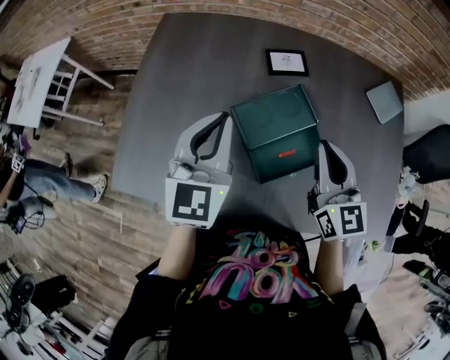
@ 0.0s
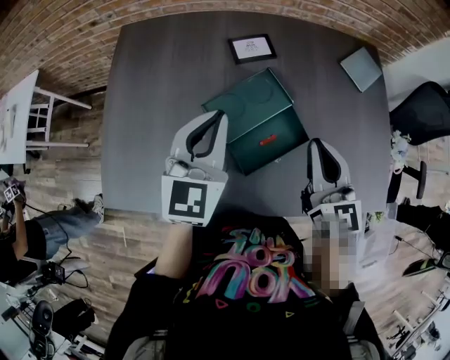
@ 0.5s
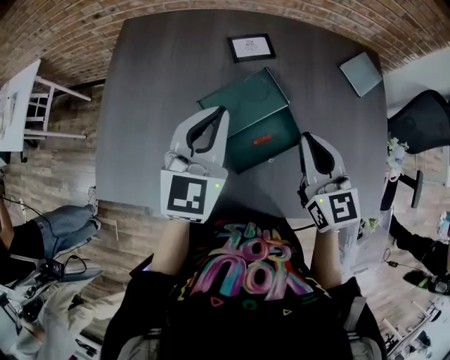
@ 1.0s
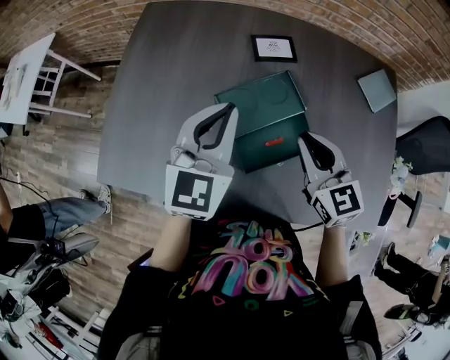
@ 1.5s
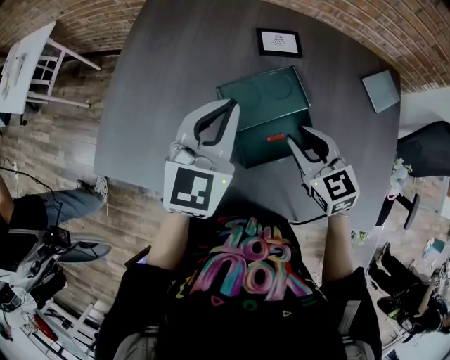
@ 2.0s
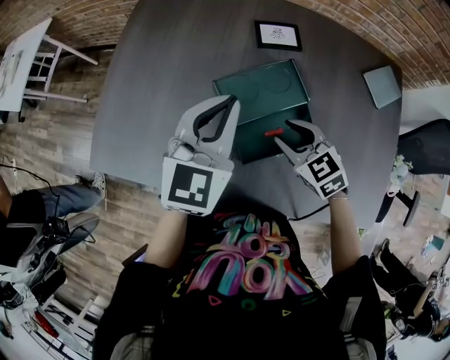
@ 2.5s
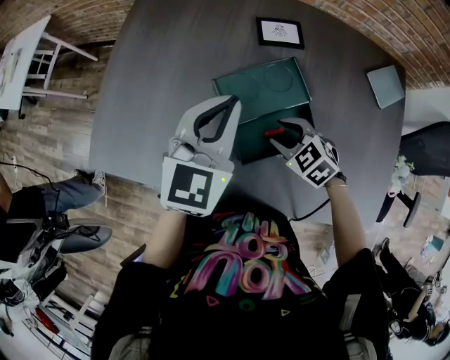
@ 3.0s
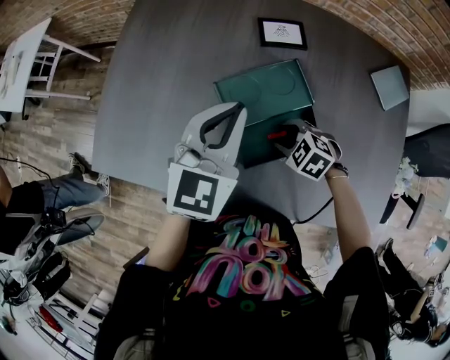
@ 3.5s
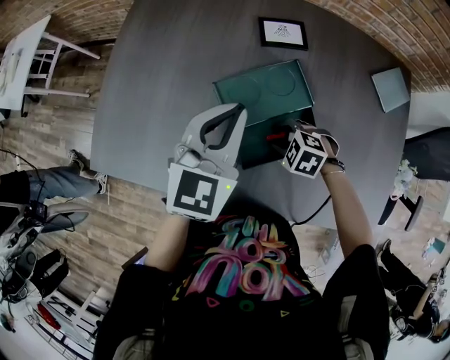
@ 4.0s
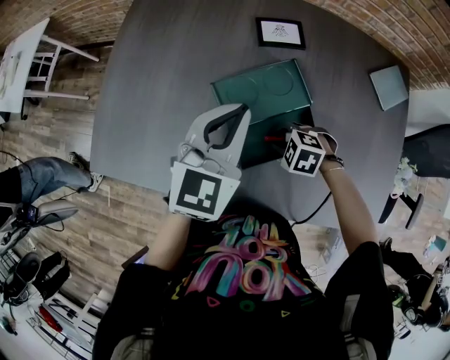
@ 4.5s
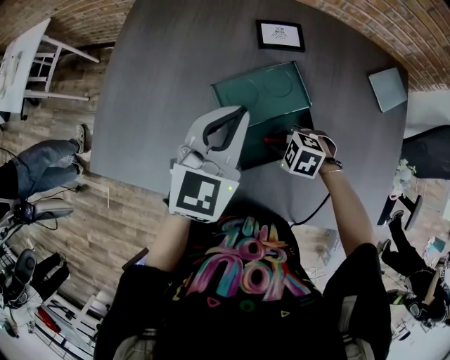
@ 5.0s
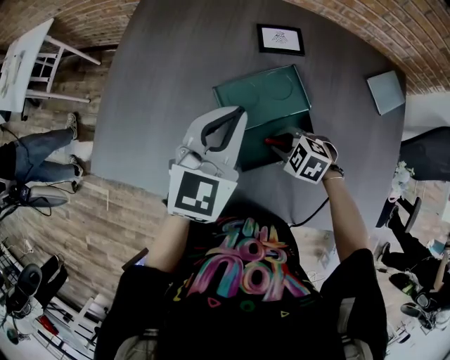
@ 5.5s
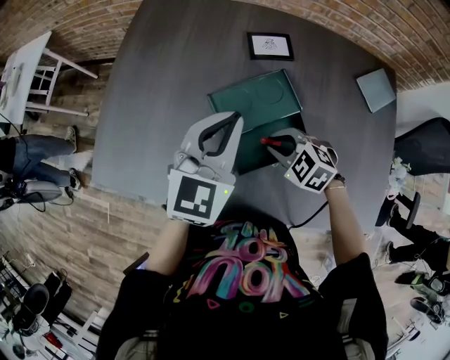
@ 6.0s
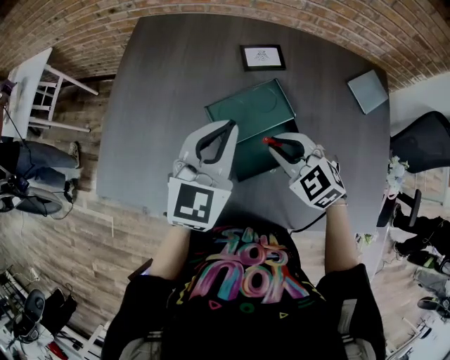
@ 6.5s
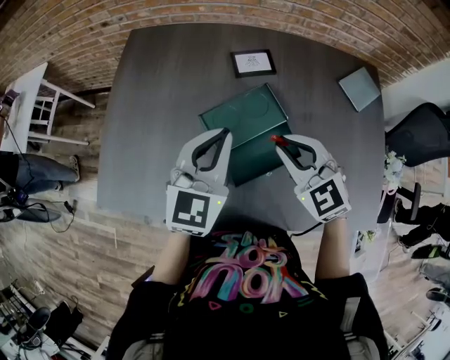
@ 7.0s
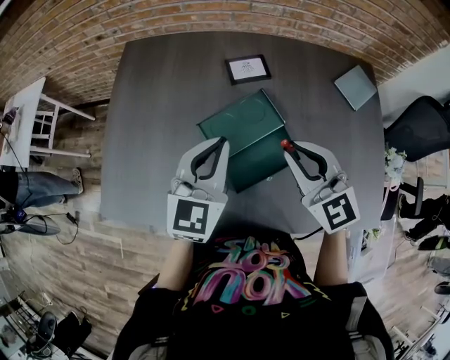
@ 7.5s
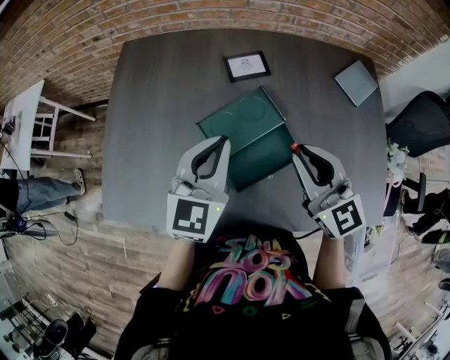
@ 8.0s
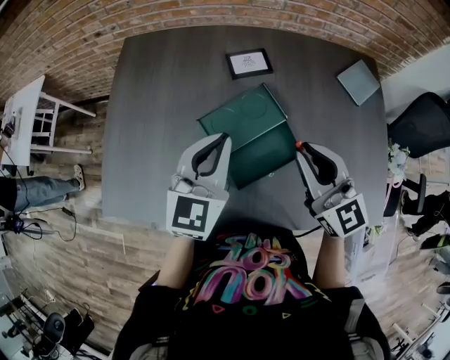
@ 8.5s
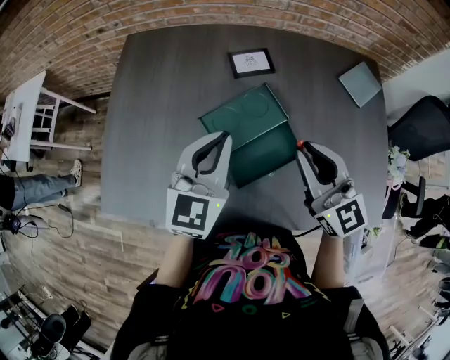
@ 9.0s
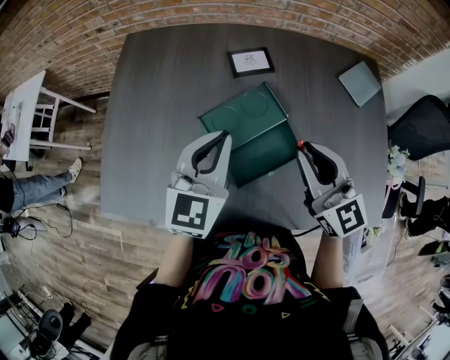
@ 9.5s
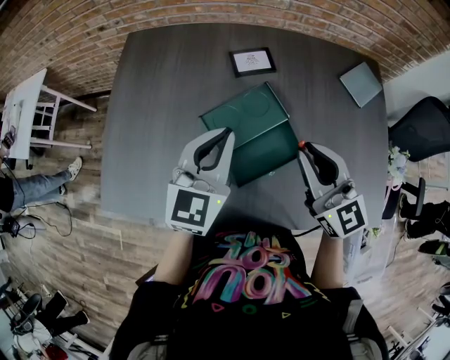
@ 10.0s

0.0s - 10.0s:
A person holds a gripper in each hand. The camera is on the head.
0.0s - 2.0s: The right gripper heads downward, covering roughly 10 cm, rotates some 30 degrees, and opens. Meanwhile the left gripper travels to the right by approximately 5 cm.
2.0s - 4.0s: The right gripper shifts about 15 cm downward, and tilts its fingers some 40 degrees downward.
4.0s - 6.0s: The right gripper shifts some 10 cm upward, and closes.
6.0s - 8.0s: The right gripper goes roughly 20 cm upward, and tilts its fingers some 50 degrees upward.
8.0s - 10.0s: Both grippers stay about where they are.

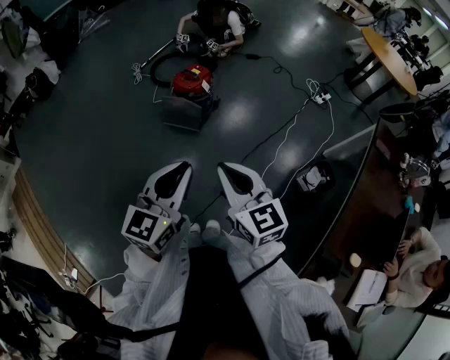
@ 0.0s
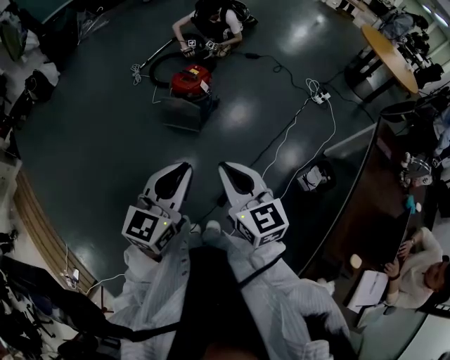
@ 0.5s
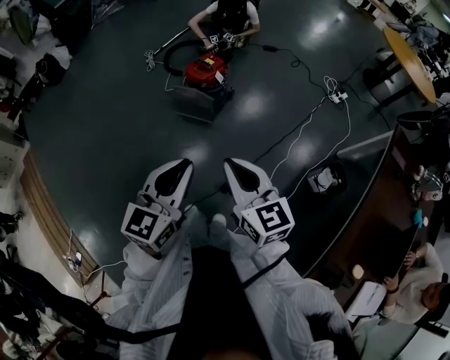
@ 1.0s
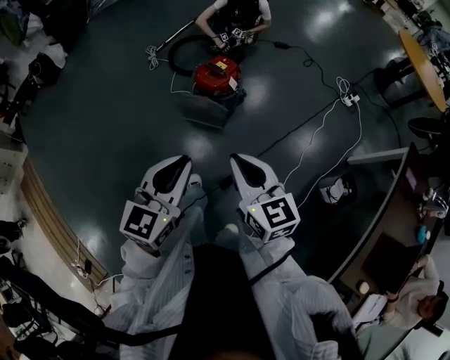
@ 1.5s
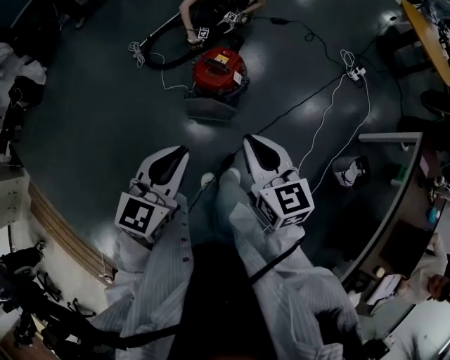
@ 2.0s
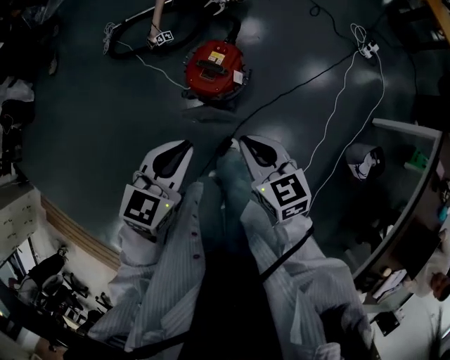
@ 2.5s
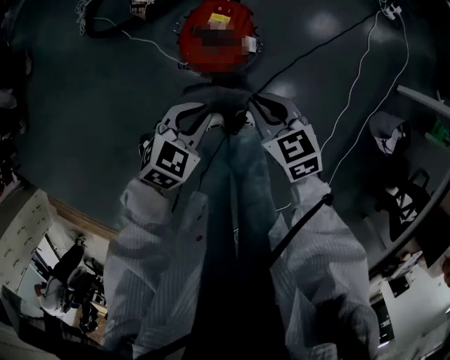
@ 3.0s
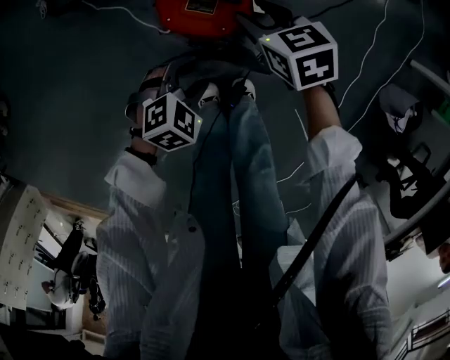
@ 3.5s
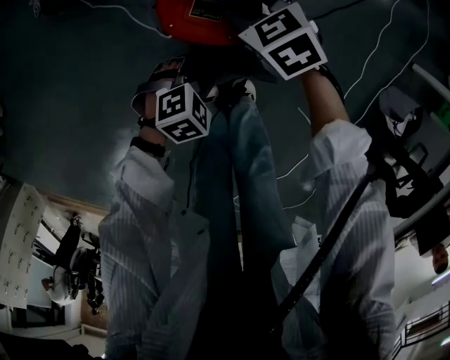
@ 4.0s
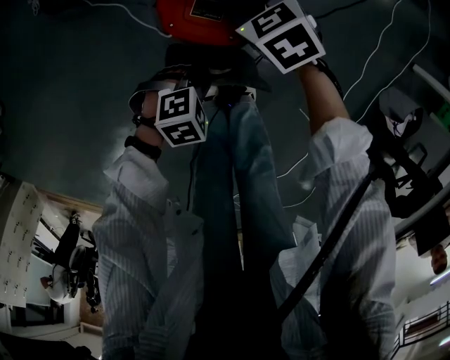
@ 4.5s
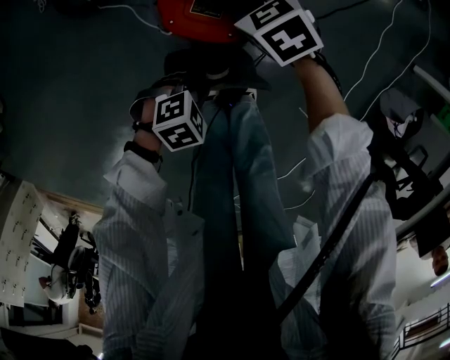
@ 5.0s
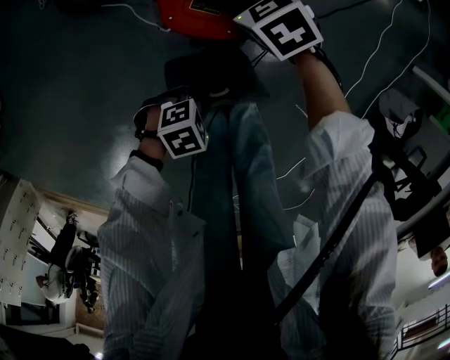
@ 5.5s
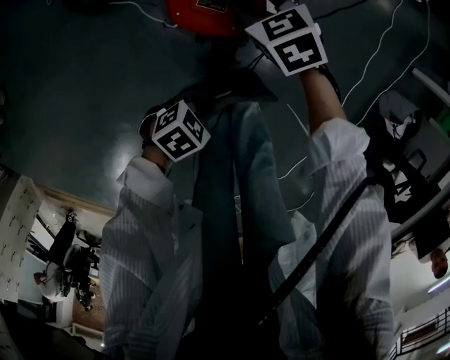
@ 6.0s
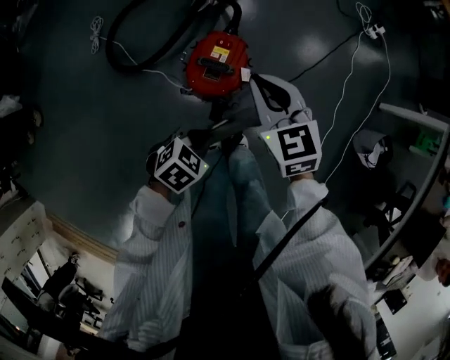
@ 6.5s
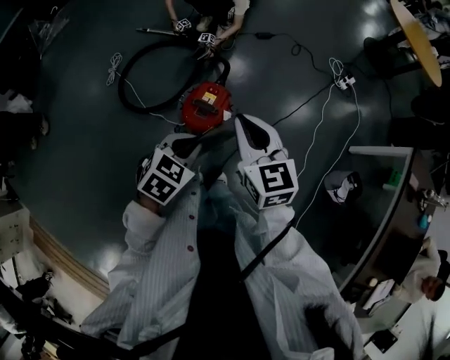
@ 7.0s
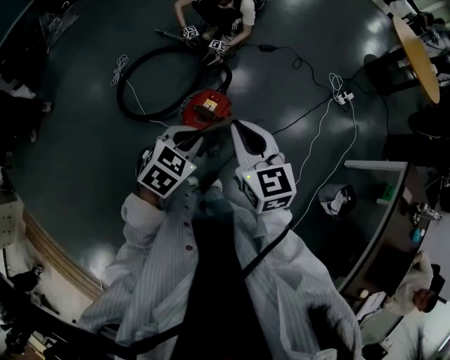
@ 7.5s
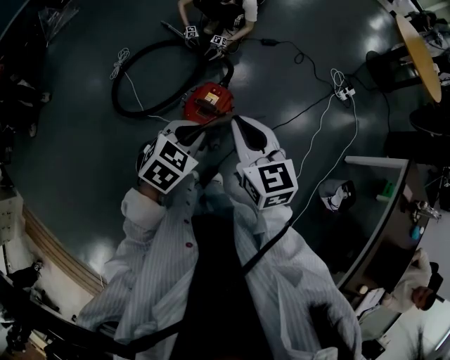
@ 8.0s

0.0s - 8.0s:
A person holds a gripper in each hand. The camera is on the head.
0.0s - 2.0s: The right gripper heads forward, covering some 35 cm. The left gripper heads forward and to the left, covering roughly 40 cm.
2.0s - 4.0s: The two grippers go about 60 cm downward. The left gripper points its fingers roughly 40 degrees further downward, and opens up, while the right gripper tilts its fingers about 30 degrees downward, and opens its fingers.
4.0s - 6.0s: The left gripper moves roughly 10 cm, swivels roughly 20 degrees, and closes up.
6.0s - 8.0s: The grippers both shift upward by approximately 50 cm. The right gripper points its fingers some 30 degrees further upward, and closes. Meanwhile the left gripper turns by some 40 degrees.

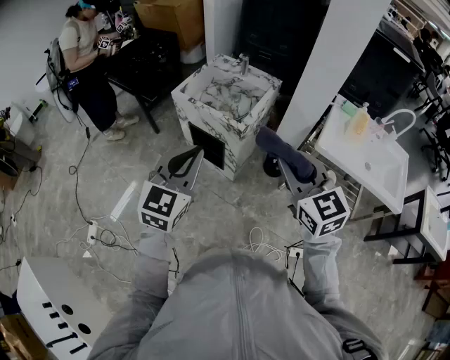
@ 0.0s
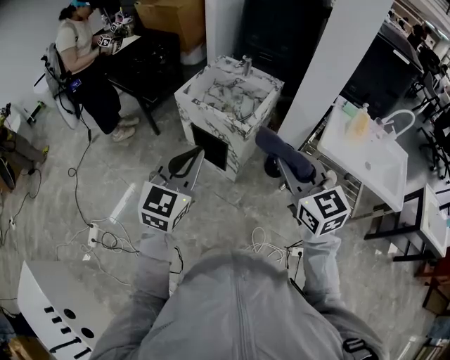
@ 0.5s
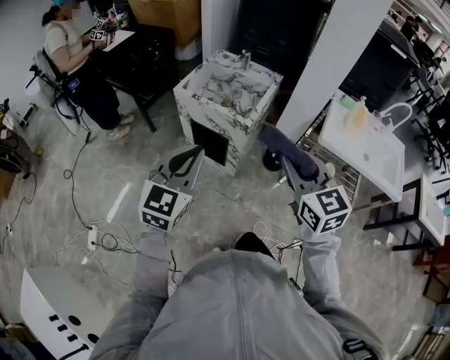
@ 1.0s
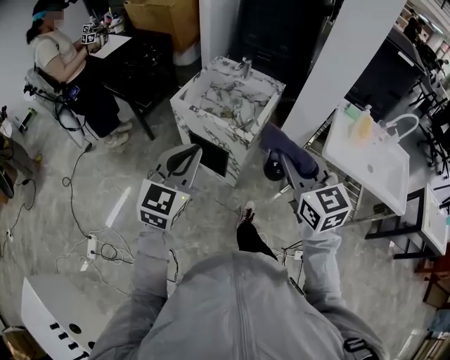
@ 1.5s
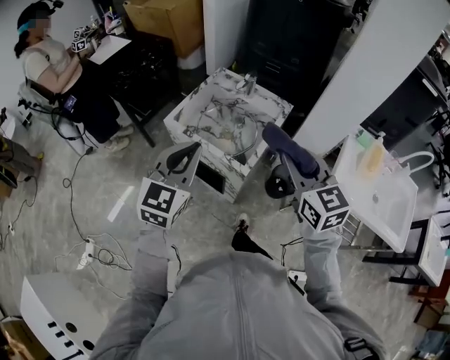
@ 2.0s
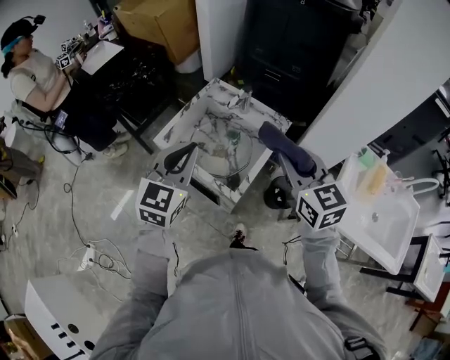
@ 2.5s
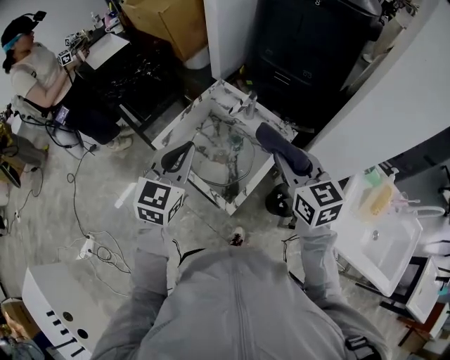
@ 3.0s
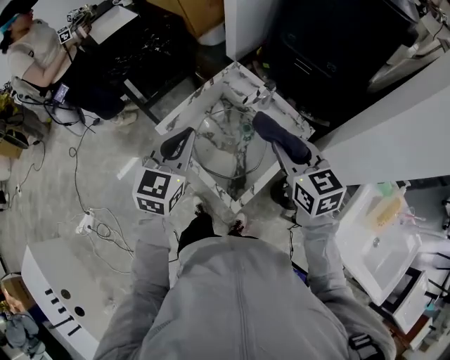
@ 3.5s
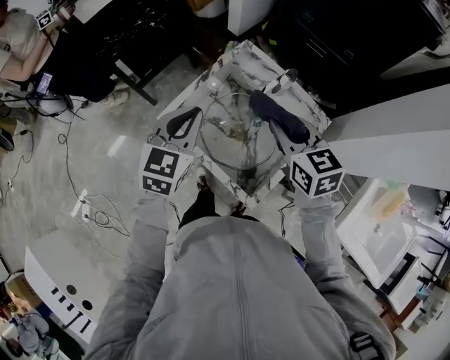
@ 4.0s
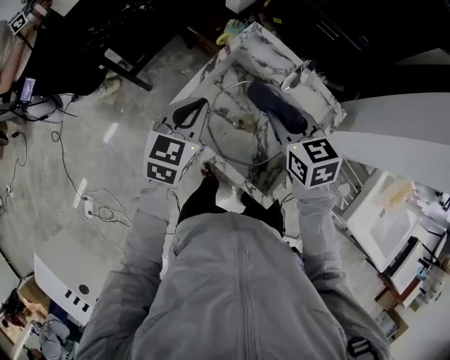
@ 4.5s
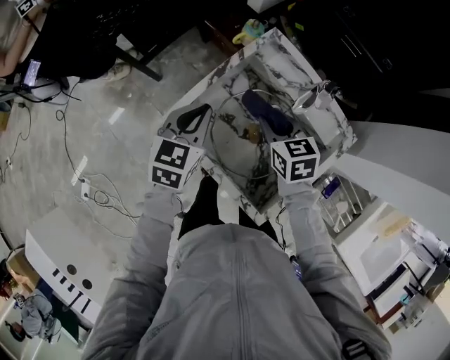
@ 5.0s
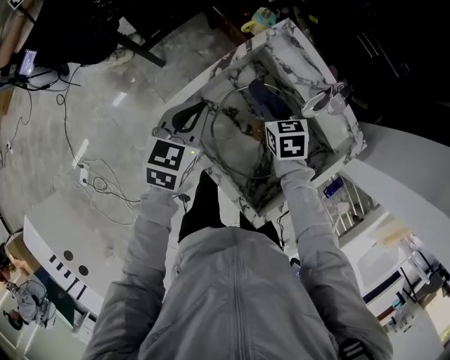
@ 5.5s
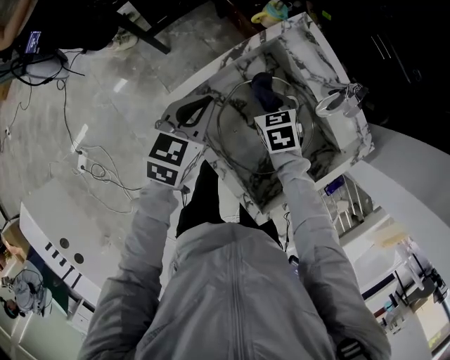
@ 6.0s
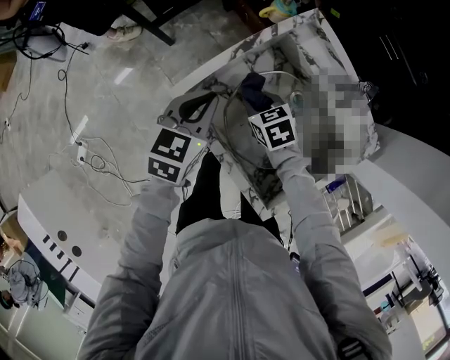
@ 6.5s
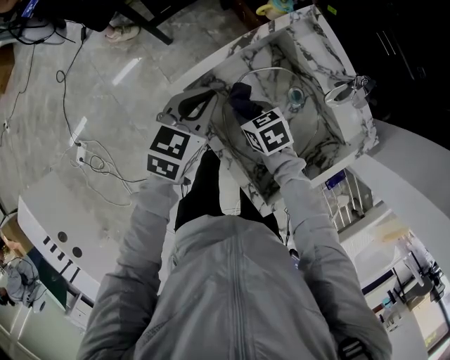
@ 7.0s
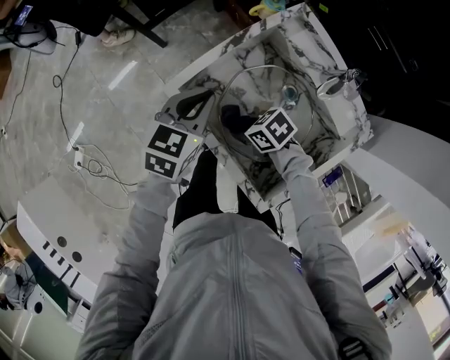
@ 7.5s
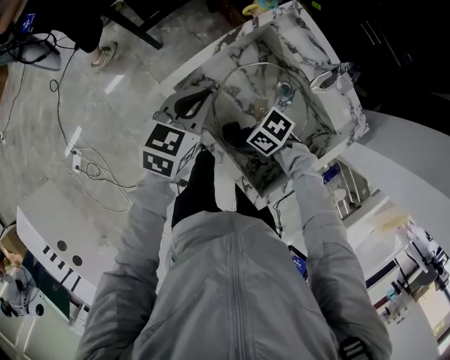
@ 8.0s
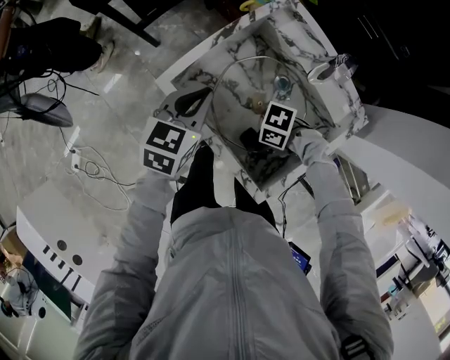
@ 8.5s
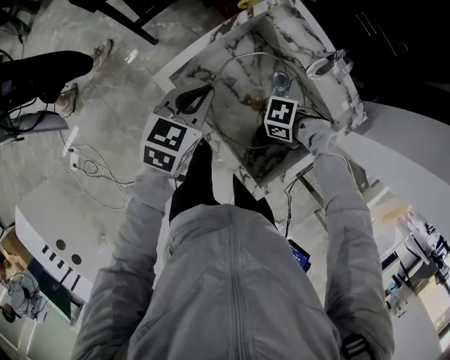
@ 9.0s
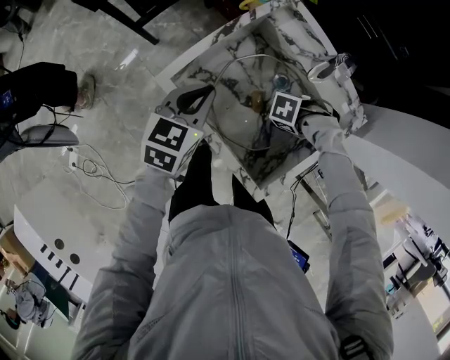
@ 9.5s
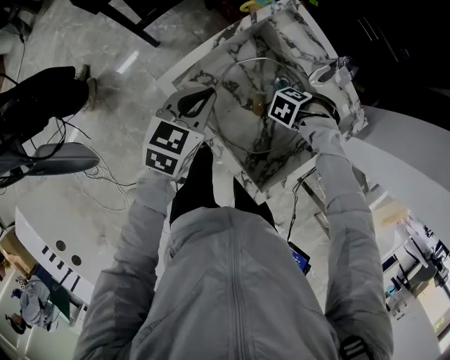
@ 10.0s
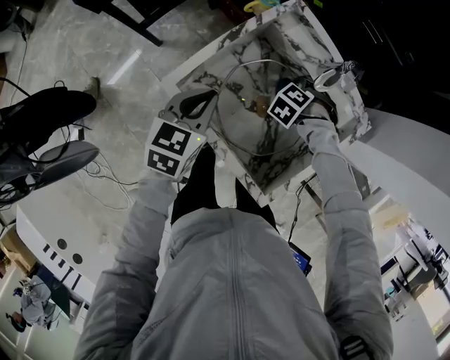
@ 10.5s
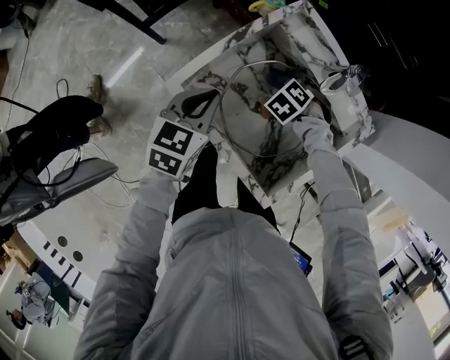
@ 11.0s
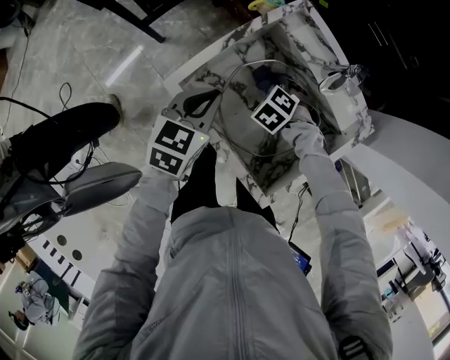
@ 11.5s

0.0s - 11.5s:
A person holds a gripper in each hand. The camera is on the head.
0.0s - 2.0s: Both grippers travel together forward, some 25 cm.
2.0s - 4.0s: The grippers both shift forward and downward by approximately 30 cm. The right gripper changes its angle by roughly 20 degrees.
4.0s - 6.0s: The right gripper moves downward, some 30 cm, and turns by about 30 degrees, while the left gripper travels downward by about 15 cm.
6.0s - 7.5s: The right gripper changes place by about 15 cm, and turns by roughly 40 degrees.
7.5s - 9.5s: The right gripper shifts by approximately 20 cm, and changes its angle by about 60 degrees.
9.5s - 11.5s: The right gripper moves approximately 20 cm, and swivels roughly 50 degrees.
